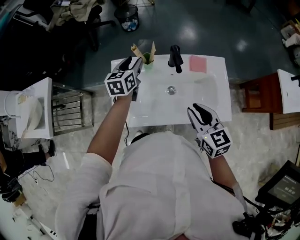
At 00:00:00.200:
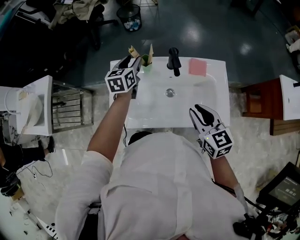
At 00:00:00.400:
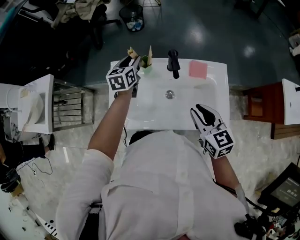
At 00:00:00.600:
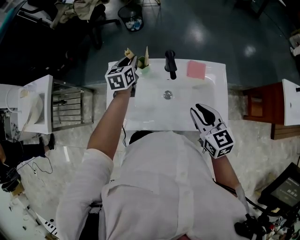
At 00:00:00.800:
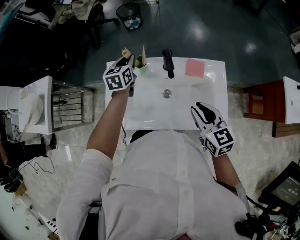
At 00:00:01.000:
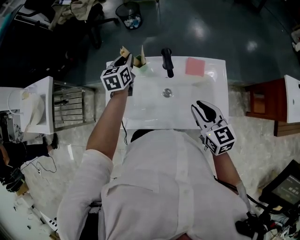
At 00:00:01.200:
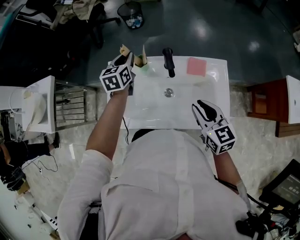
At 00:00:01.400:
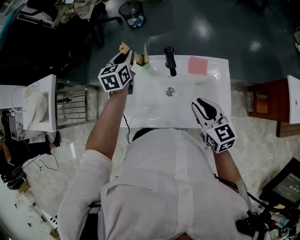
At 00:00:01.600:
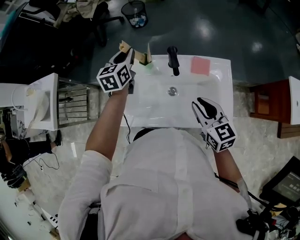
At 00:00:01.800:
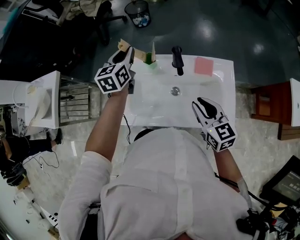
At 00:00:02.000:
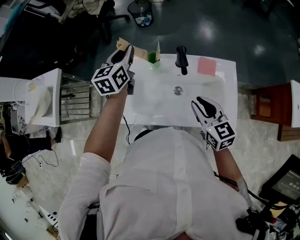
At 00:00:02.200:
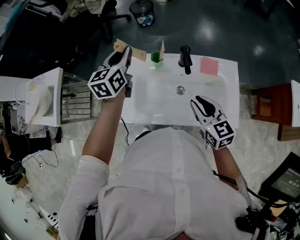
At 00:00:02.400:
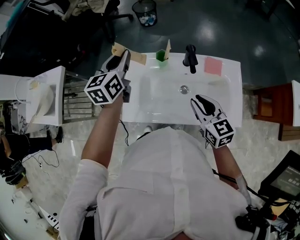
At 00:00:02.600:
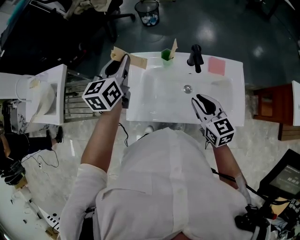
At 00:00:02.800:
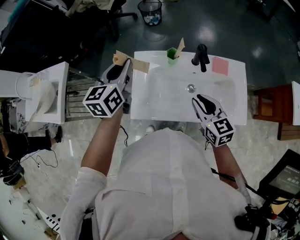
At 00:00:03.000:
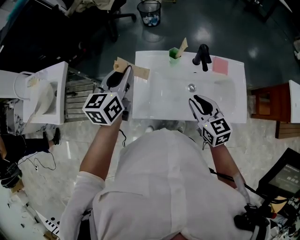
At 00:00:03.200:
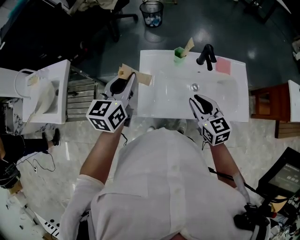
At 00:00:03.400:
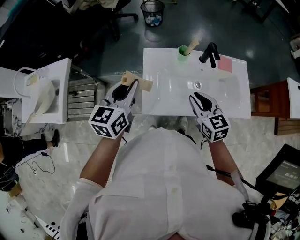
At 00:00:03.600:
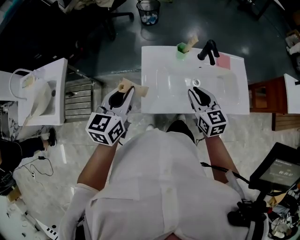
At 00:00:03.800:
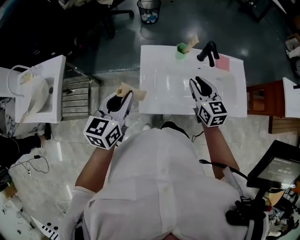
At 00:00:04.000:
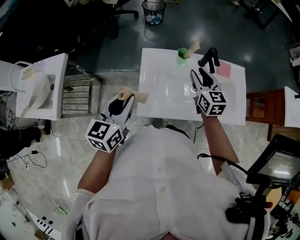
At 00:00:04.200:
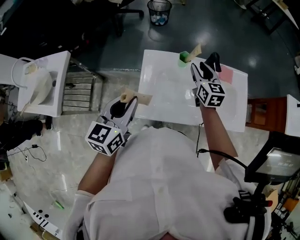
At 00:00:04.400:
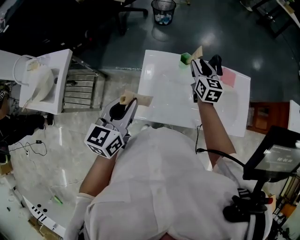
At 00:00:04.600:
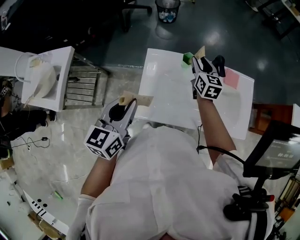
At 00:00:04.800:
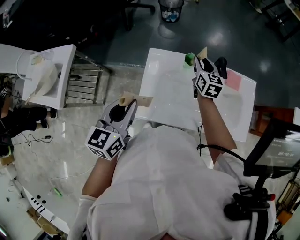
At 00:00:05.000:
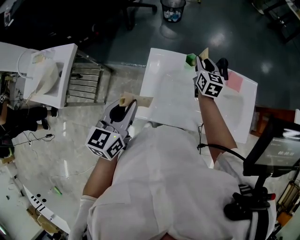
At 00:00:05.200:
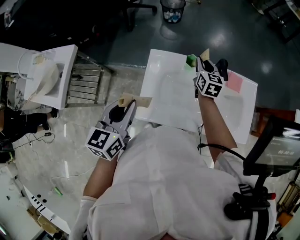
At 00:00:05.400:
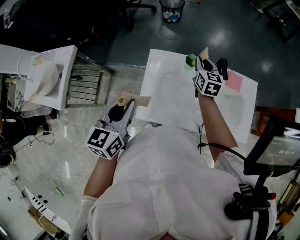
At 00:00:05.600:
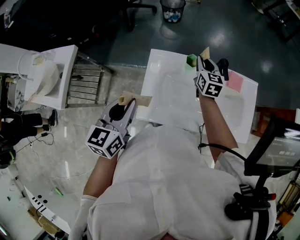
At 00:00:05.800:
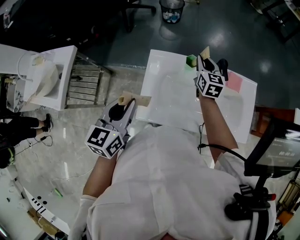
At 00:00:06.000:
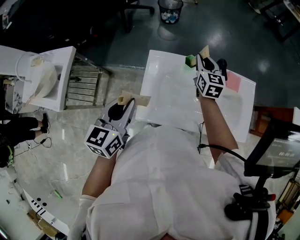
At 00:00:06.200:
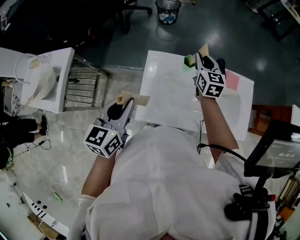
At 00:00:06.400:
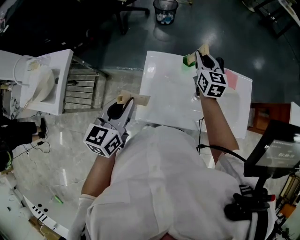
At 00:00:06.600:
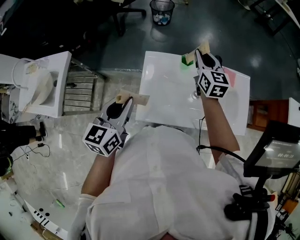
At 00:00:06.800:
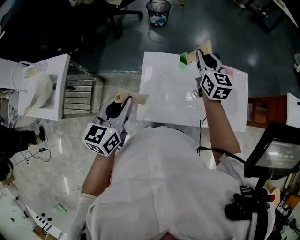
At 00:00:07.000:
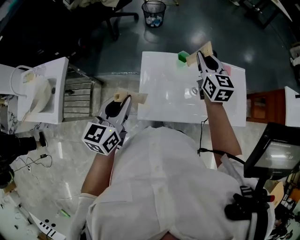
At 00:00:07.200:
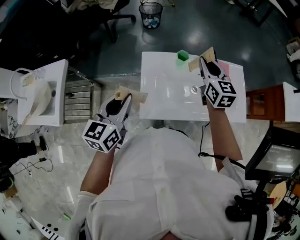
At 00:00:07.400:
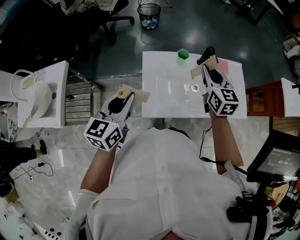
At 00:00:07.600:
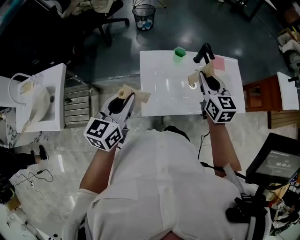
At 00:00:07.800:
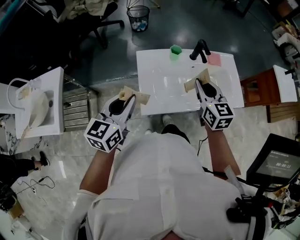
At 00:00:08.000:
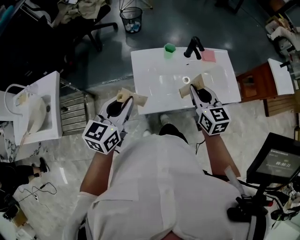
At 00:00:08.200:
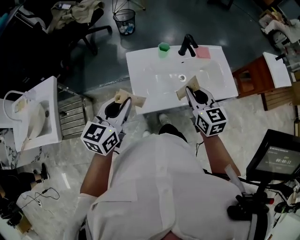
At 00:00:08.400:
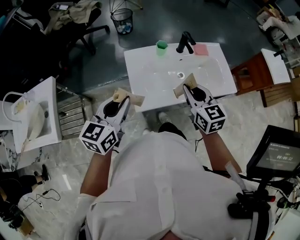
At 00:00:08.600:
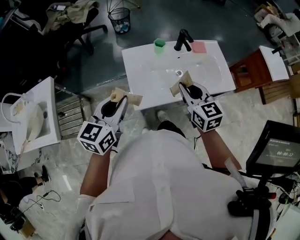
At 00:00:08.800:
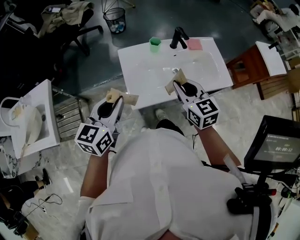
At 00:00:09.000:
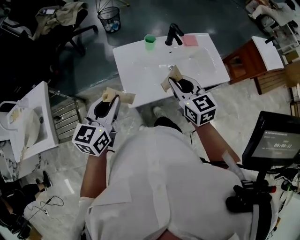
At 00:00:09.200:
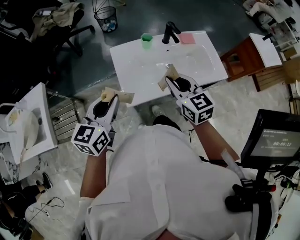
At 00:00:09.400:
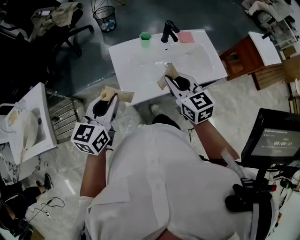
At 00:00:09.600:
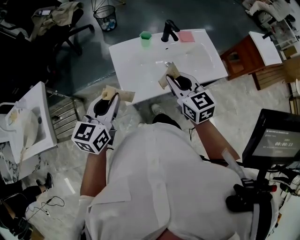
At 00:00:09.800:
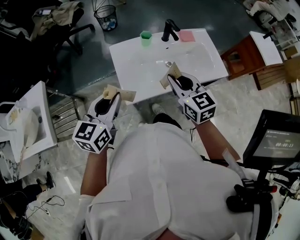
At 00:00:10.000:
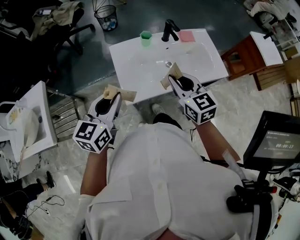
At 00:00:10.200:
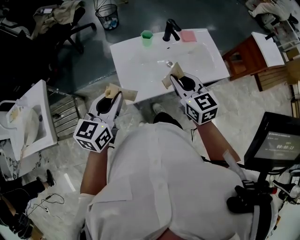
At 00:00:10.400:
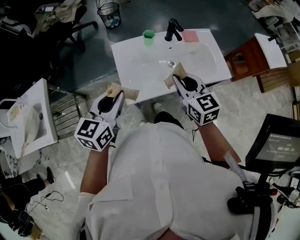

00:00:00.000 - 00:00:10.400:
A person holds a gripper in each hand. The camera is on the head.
00:00:00.000 - 00:00:01.400: The left gripper closes its fingers; the right gripper moves to the right, about 5 cm.
00:00:01.400 - 00:00:03.000: The left gripper heads to the left, backward and upward, covering some 25 cm. The right gripper is displaced to the left by roughly 15 cm.
00:00:03.000 - 00:00:04.400: The left gripper shifts approximately 10 cm backward. The right gripper travels forward by some 20 cm.
00:00:04.400 - 00:00:06.000: The grippers stay close to where they were, moving slightly.
00:00:06.000 - 00:00:07.400: The right gripper goes some 15 cm backward and upward.
00:00:07.400 - 00:00:09.000: The right gripper shifts approximately 15 cm backward; the left gripper travels backward by about 5 cm.
00:00:09.000 - 00:00:10.400: The grippers stay close to where they were, moving slightly.

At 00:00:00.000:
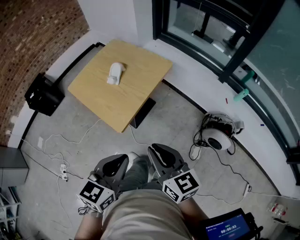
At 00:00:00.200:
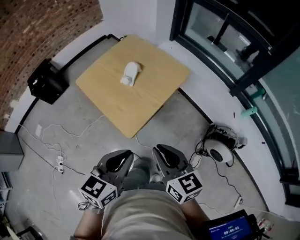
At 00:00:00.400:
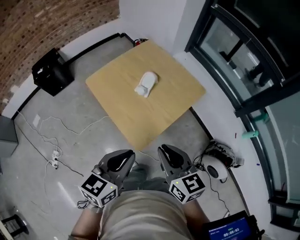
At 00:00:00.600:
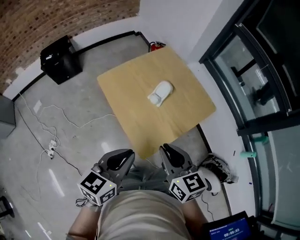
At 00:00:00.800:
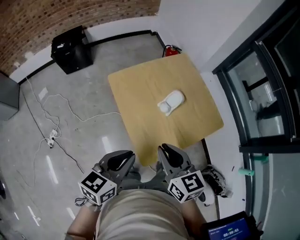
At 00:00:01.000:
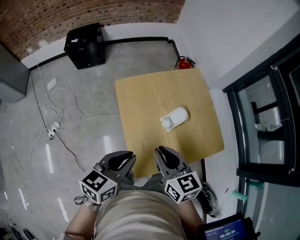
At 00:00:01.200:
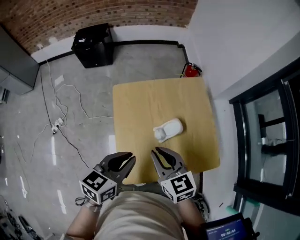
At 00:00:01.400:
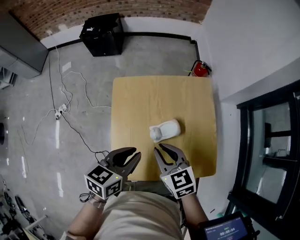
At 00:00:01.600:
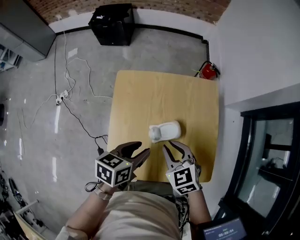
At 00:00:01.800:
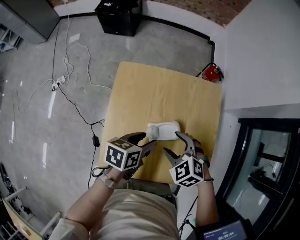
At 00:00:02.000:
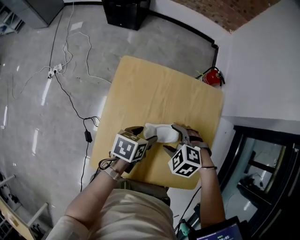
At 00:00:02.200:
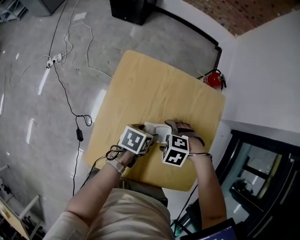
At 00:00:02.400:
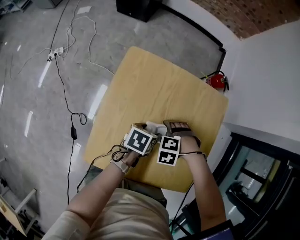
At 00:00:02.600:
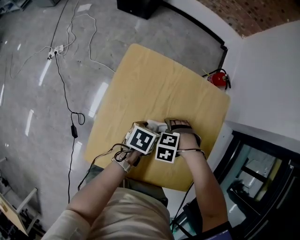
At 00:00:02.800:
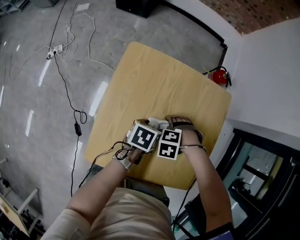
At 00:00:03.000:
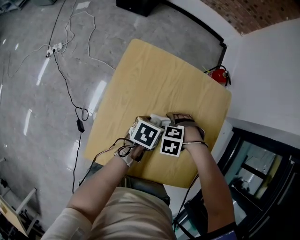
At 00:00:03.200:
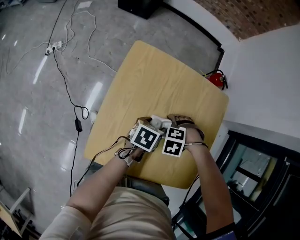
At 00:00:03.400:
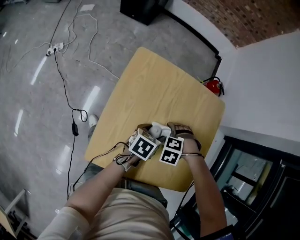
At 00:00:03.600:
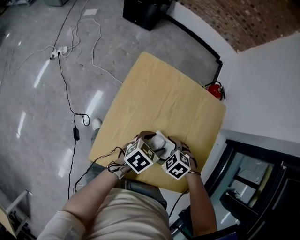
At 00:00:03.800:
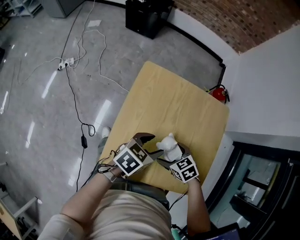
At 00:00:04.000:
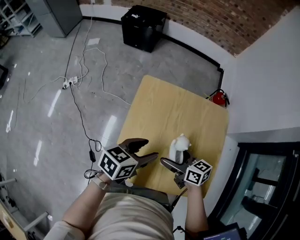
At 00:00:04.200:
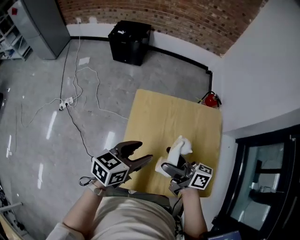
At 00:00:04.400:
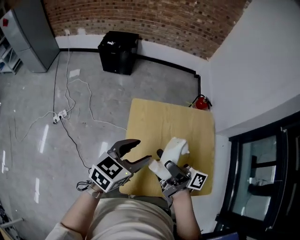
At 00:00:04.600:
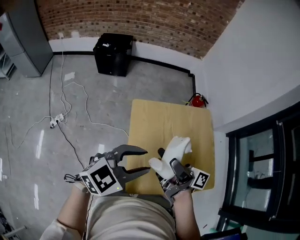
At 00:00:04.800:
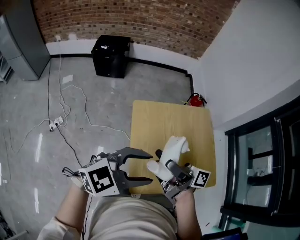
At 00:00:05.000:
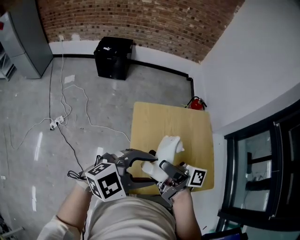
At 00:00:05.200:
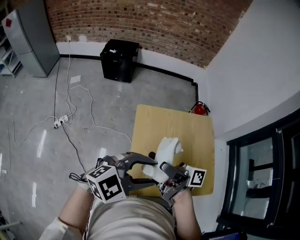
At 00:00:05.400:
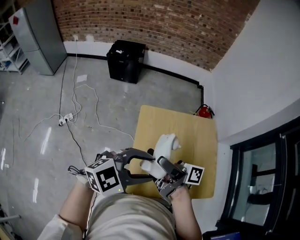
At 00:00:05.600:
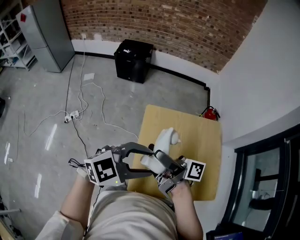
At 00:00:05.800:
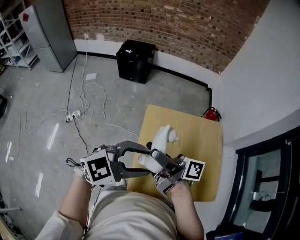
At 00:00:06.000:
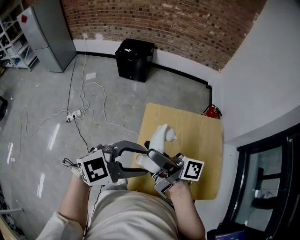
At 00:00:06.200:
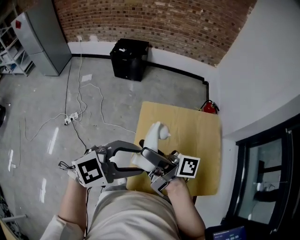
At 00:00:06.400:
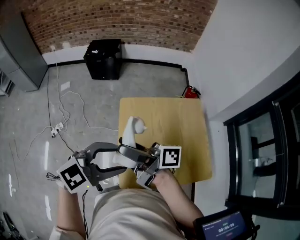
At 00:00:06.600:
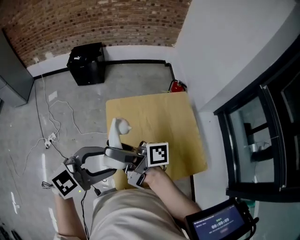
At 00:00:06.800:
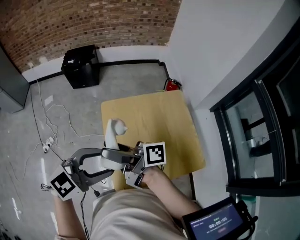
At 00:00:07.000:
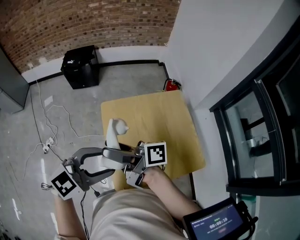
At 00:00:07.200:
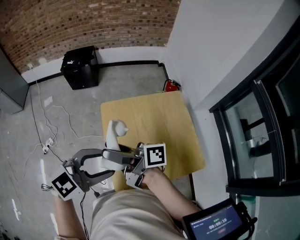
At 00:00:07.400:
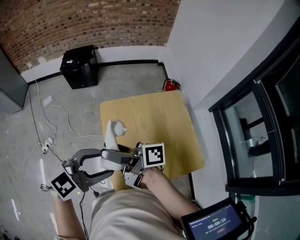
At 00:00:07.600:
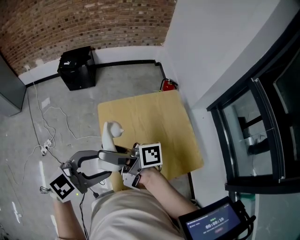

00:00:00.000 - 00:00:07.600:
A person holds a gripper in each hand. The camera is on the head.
00:00:00.000 - 00:00:01.600: Both grippers are carried roughly 50 cm. The left gripper changes its angle by roughly 60 degrees, and opens. The right gripper swivels roughly 70 degrees.
00:00:01.600 - 00:00:03.000: The grippers both shift downward by some 20 cm. The right gripper tips its fingers downward by approximately 40 degrees, and opens its fingers; the left gripper opens its fingers.
00:00:03.000 - 00:00:04.600: The two grippers go some 35 cm upward. The right gripper points its fingers about 100 degrees further upward; the left gripper twists about 70 degrees clockwise, seen from behind, and closes.
00:00:04.600 - 00:00:06.000: The right gripper changes place by some 10 cm.
00:00:06.000 - 00:00:07.600: Both grippers stay about where they are.

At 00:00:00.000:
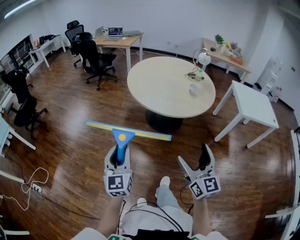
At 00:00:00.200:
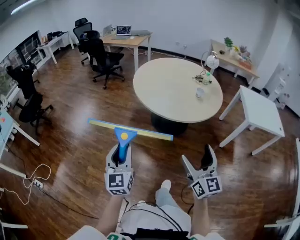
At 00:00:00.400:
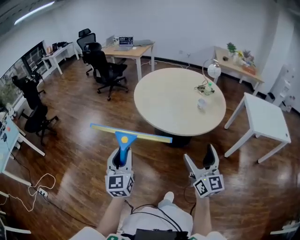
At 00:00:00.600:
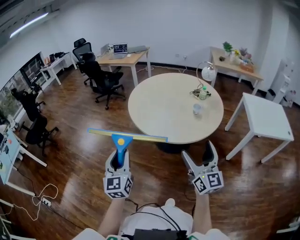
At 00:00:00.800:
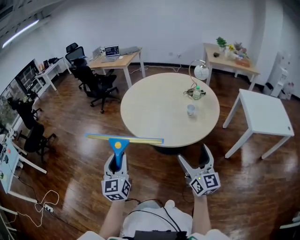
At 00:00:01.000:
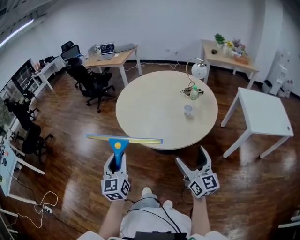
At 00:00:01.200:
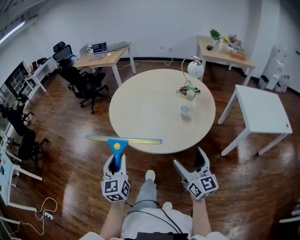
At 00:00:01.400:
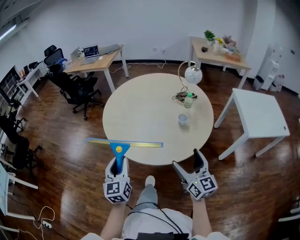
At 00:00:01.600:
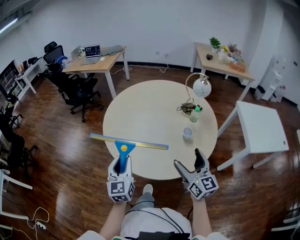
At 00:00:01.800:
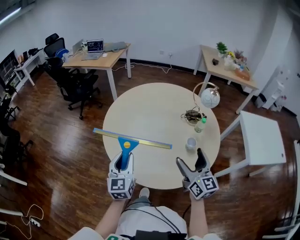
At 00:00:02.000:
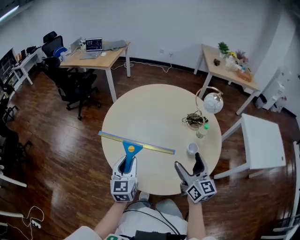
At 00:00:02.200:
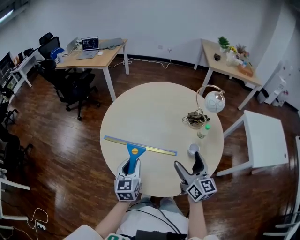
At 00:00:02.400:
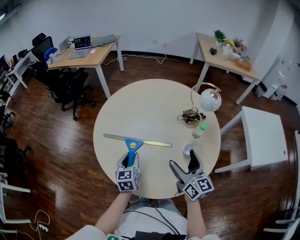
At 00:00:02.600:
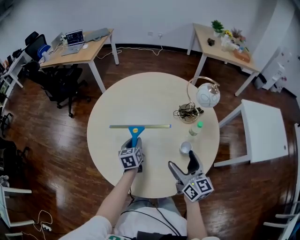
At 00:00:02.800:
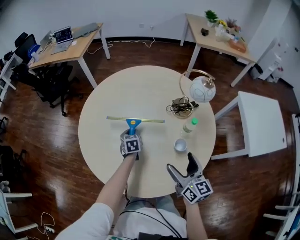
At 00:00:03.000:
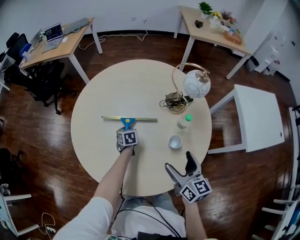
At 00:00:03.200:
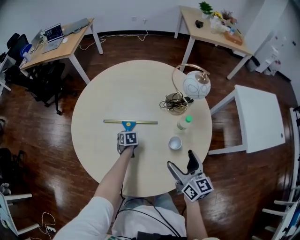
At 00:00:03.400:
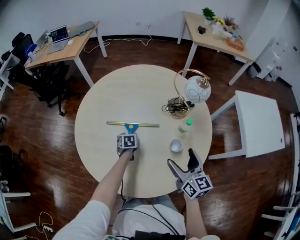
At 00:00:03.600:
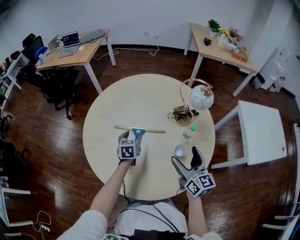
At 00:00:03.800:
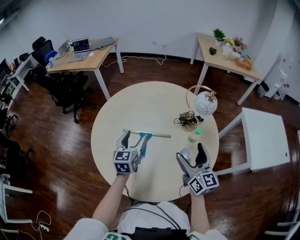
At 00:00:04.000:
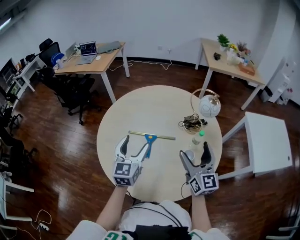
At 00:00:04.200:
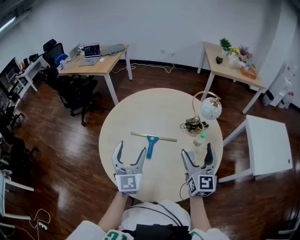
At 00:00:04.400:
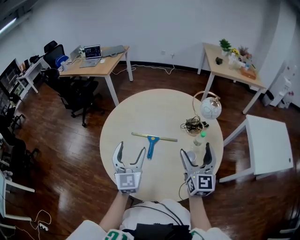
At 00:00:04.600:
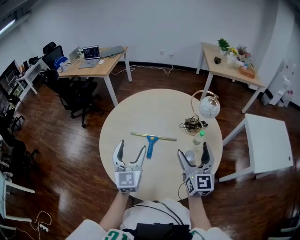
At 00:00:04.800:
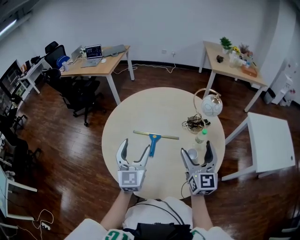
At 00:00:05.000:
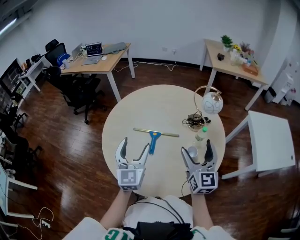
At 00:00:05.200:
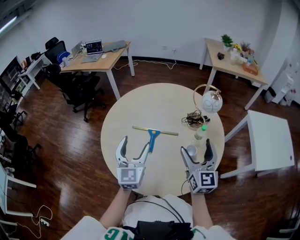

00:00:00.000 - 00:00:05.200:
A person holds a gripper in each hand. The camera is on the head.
00:00:00.000 - 00:00:01.800: Both grippers are carried forward, some 60 cm.
00:00:01.800 - 00:00:03.400: The right gripper travels forward, downward and to the right by approximately 20 cm, while the left gripper moves downward, forward and to the right, approximately 50 cm, points its fingers some 50 degrees further downward, and opens its fingers.
00:00:03.400 - 00:00:05.200: The left gripper travels upward and backward by approximately 40 cm, and angles its fingers upward, by roughly 50 degrees. The right gripper shifts roughly 15 cm upward, and rotates some 20 degrees.
